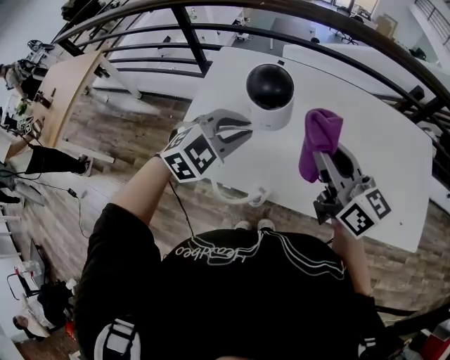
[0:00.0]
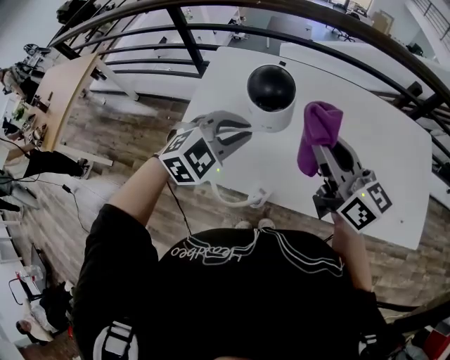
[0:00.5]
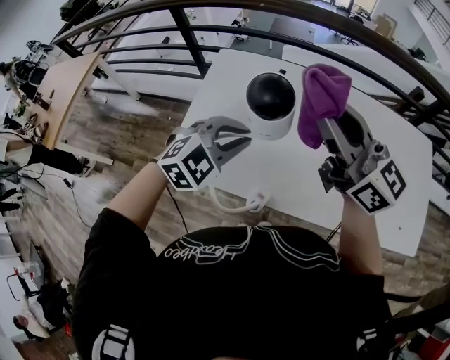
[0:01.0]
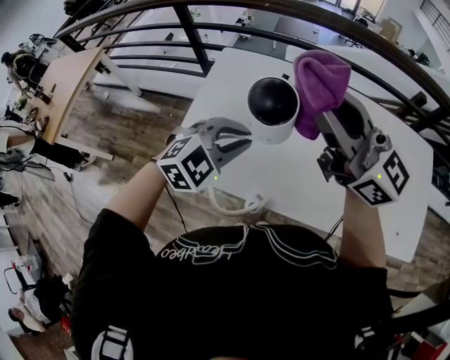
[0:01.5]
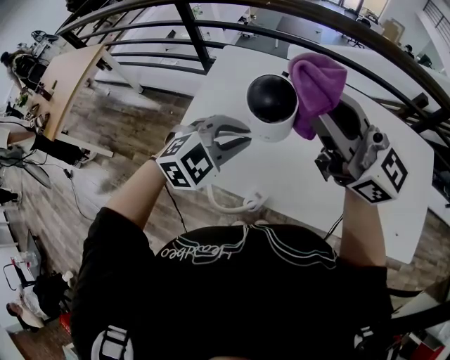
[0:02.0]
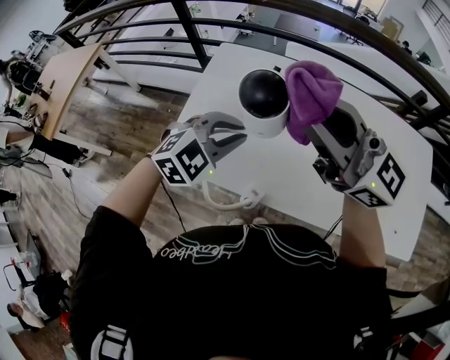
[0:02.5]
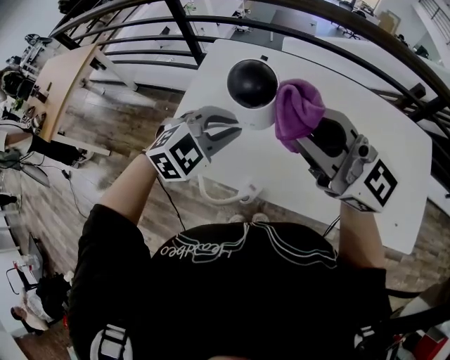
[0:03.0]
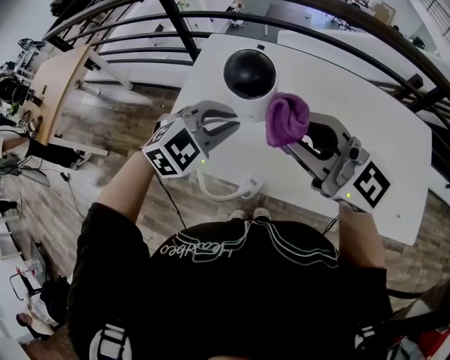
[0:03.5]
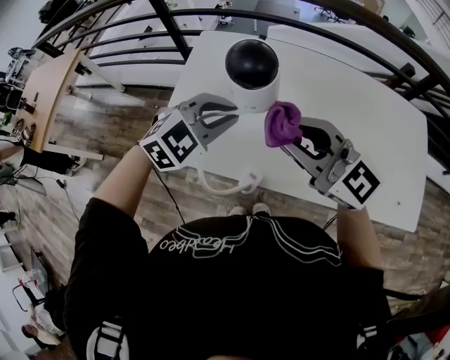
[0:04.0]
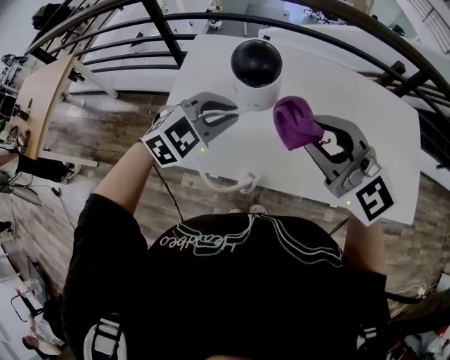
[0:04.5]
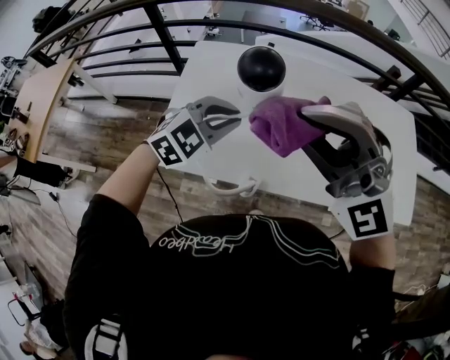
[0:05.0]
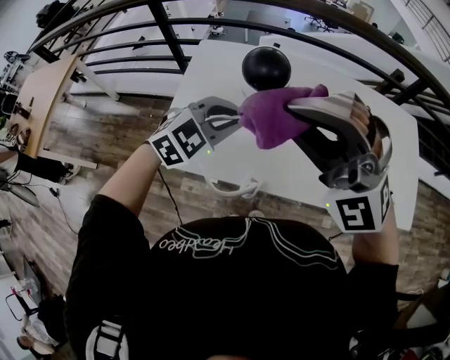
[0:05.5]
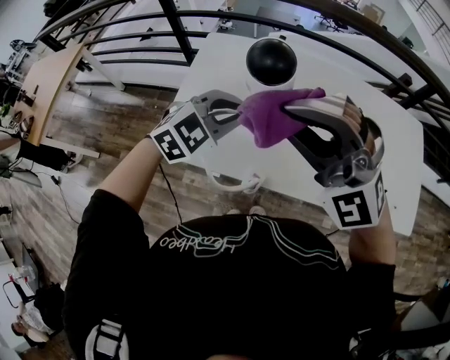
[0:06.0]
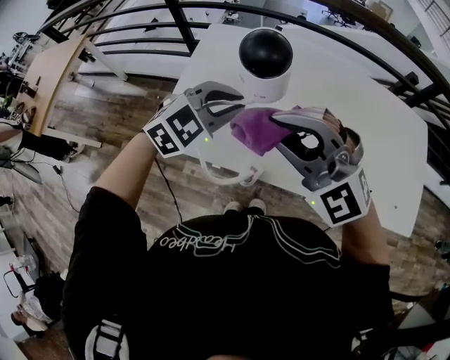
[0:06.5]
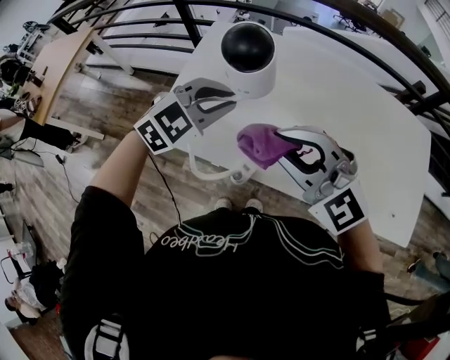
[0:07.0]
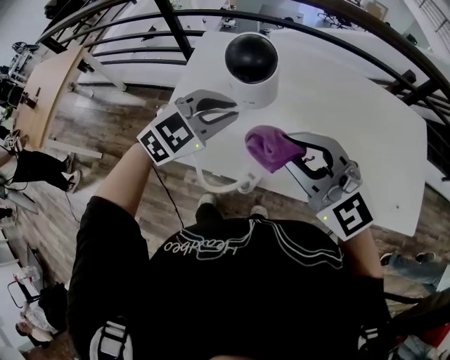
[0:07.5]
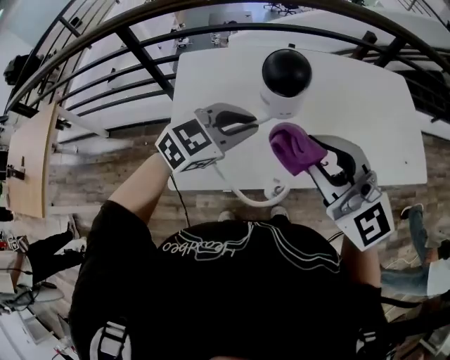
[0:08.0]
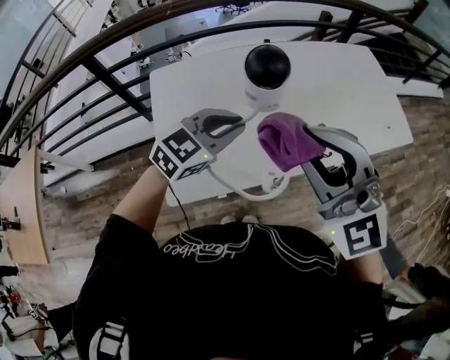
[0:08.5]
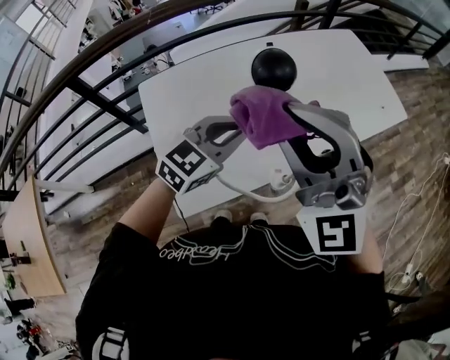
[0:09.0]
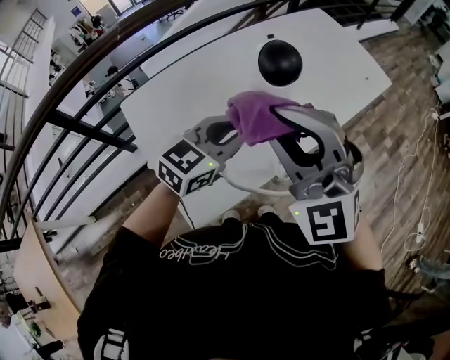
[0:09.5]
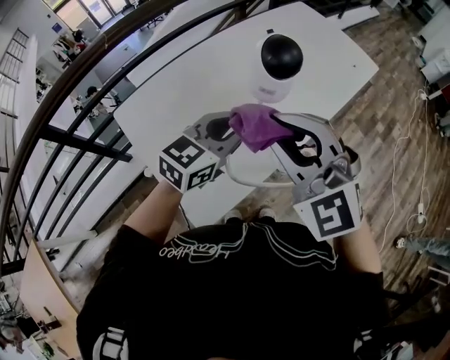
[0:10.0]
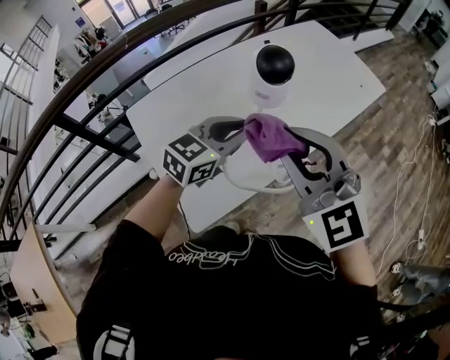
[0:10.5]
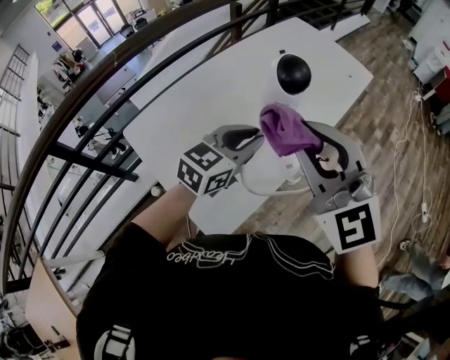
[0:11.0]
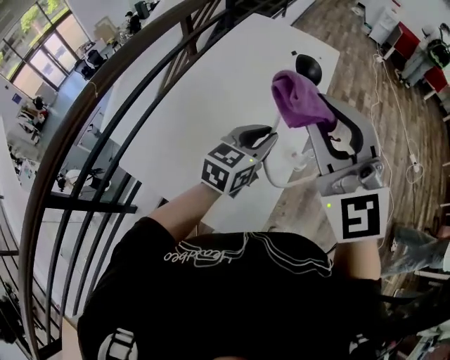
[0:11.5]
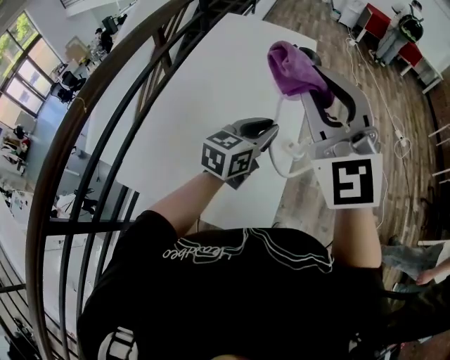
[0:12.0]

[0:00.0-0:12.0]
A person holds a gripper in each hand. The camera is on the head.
0:00.0 to 0:02.0: The right gripper moves upward, about 10 cm, and turns by some 30 degrees.
0:02.0 to 0:04.0: The right gripper shifts approximately 15 cm downward and backward, and turns by approximately 20 degrees.
0:04.0 to 0:06.0: The right gripper goes approximately 5 cm upward, and twists about 60 degrees counterclockwise, seen from behind.
0:06.0 to 0:08.0: The right gripper reaches approximately 10 cm downward, then returns, and rolls clockwise, seen from behind, by approximately 40 degrees. Meanwhile the left gripper swivels roughly 20 degrees.
0:08.0 to 0:10.0: The right gripper goes upward and returns, roughly 5 cm each way, and swivels some 50 degrees. Meanwhile the left gripper swivels roughly 30 degrees.
0:10.0 to 0:12.0: The right gripper heads upward, covering some 10 cm, and swivels some 50 degrees, while the left gripper swivels approximately 30 degrees.

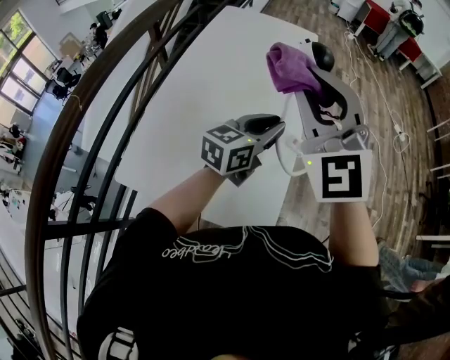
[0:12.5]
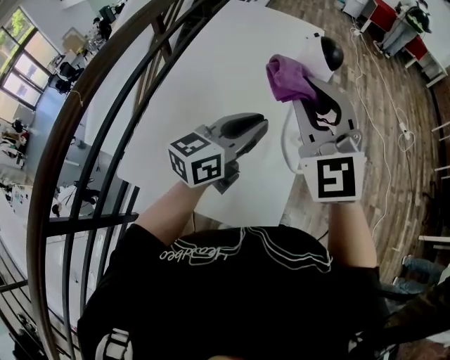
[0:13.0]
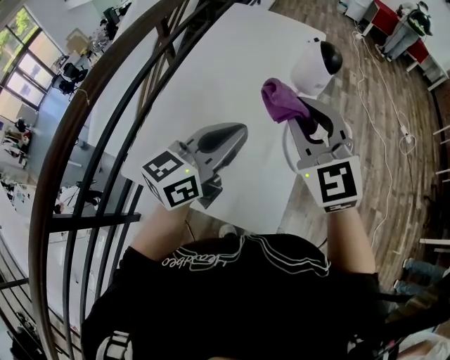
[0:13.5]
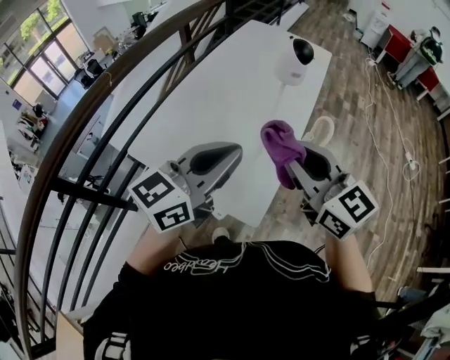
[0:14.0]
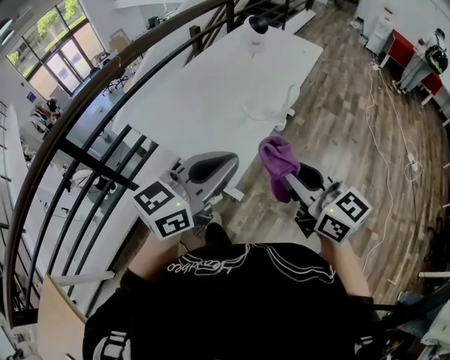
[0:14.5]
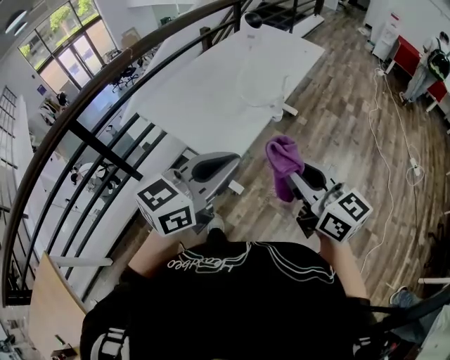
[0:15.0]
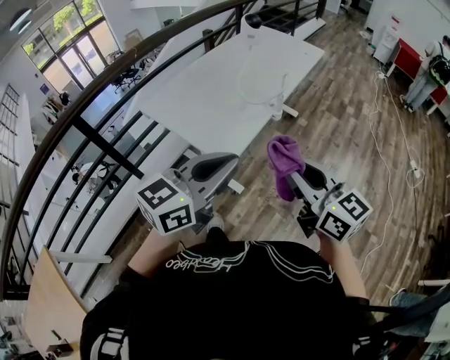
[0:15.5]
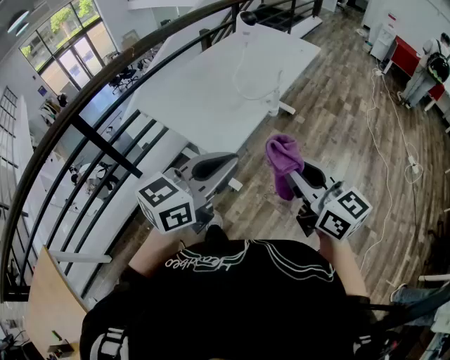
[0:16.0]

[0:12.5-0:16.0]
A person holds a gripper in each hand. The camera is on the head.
0:12.5 to 0:14.5: The left gripper changes place by some 35 cm, and changes its angle by some 20 degrees. Meanwhile the right gripper shifts by roughly 40 cm, and rolls clockwise, seen from behind, by approximately 50 degrees.
0:14.5 to 0:16.0: Both grippers move backward and to the right, about 15 cm.

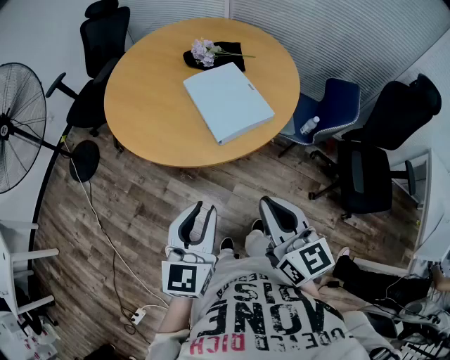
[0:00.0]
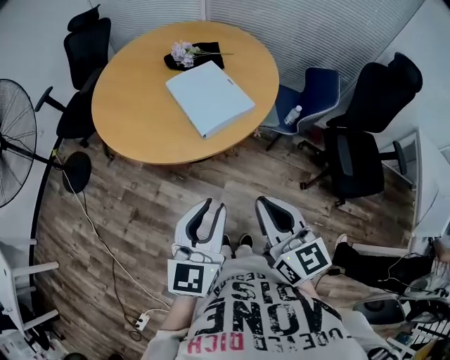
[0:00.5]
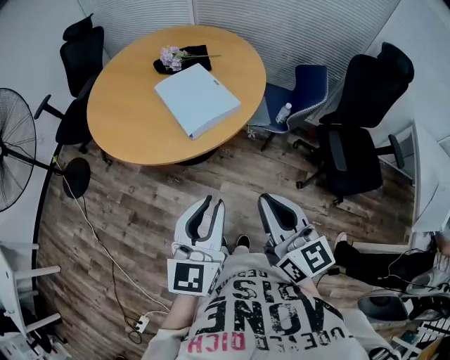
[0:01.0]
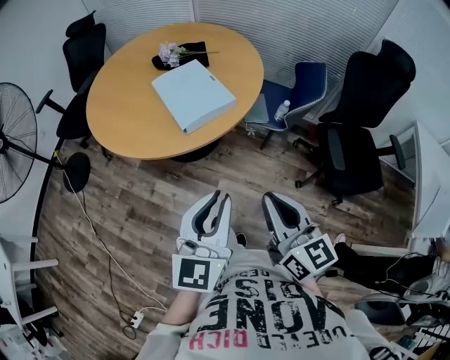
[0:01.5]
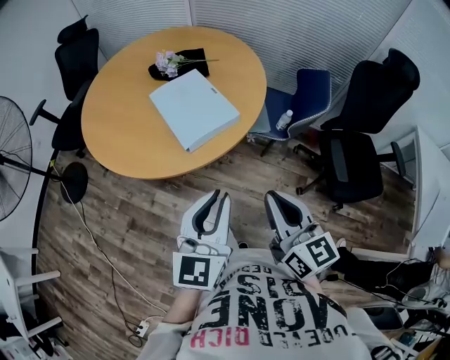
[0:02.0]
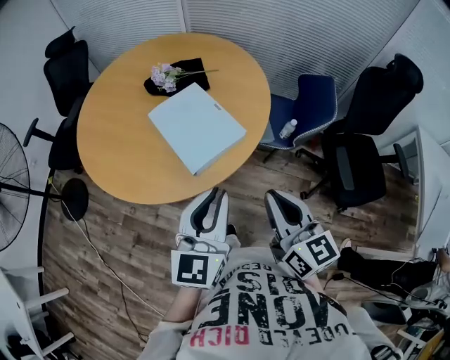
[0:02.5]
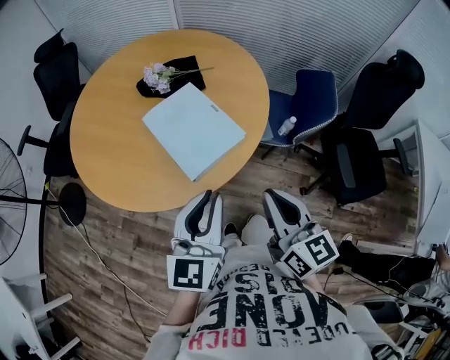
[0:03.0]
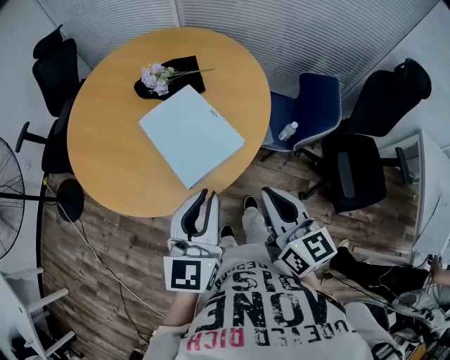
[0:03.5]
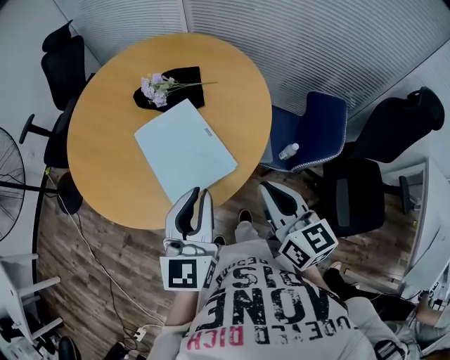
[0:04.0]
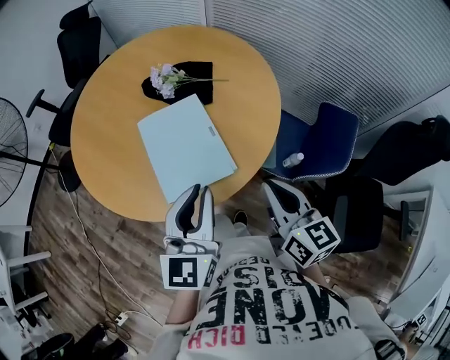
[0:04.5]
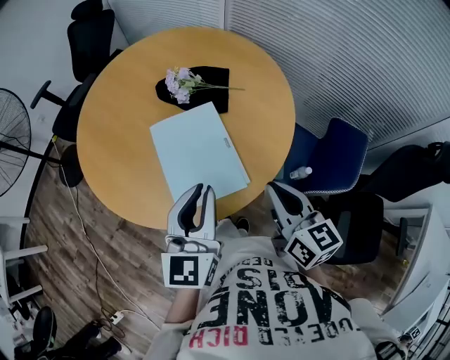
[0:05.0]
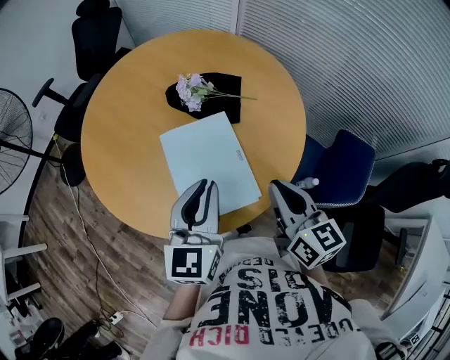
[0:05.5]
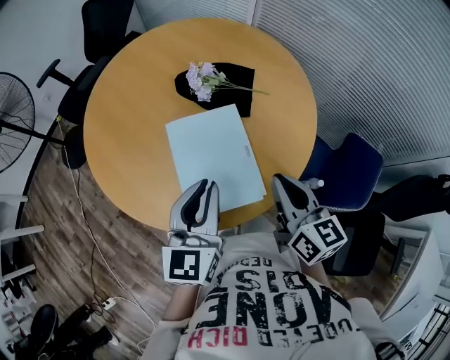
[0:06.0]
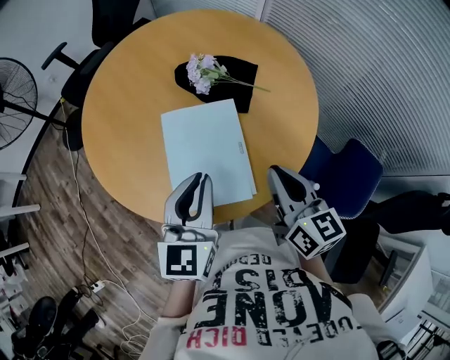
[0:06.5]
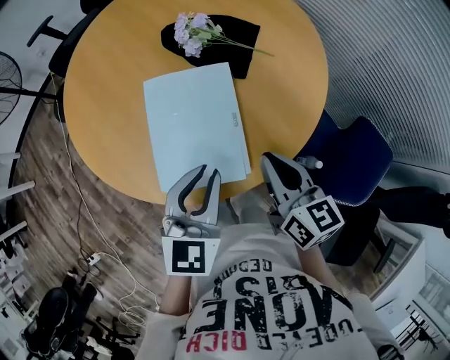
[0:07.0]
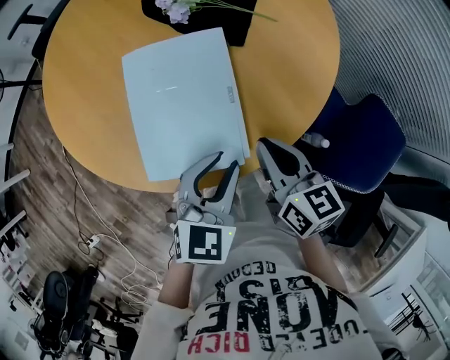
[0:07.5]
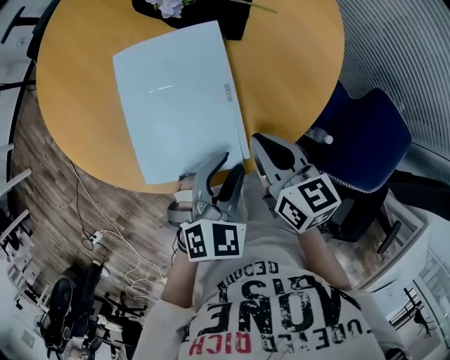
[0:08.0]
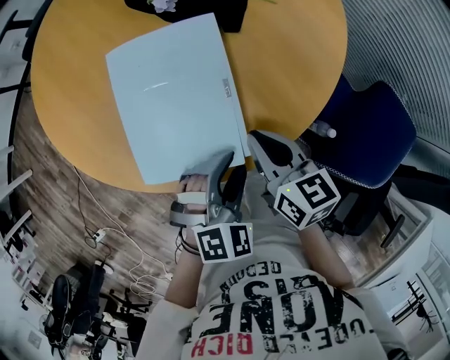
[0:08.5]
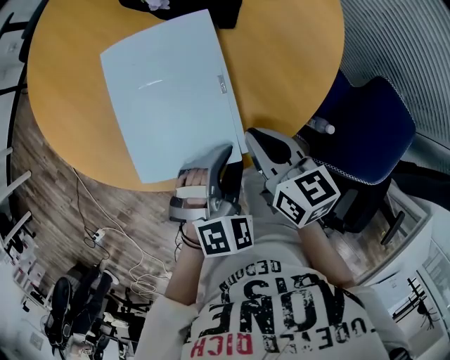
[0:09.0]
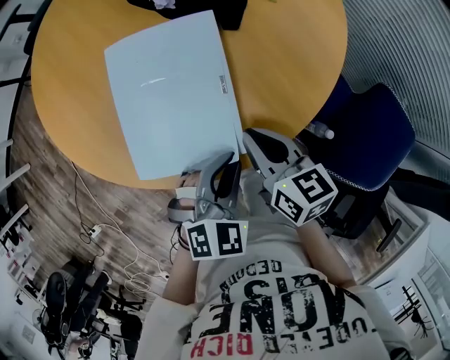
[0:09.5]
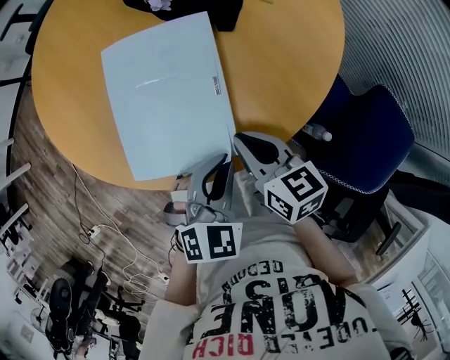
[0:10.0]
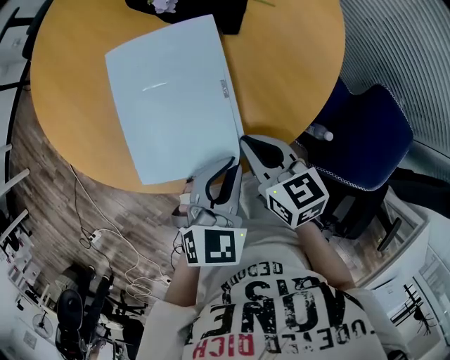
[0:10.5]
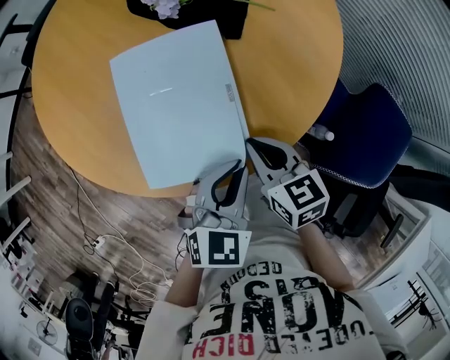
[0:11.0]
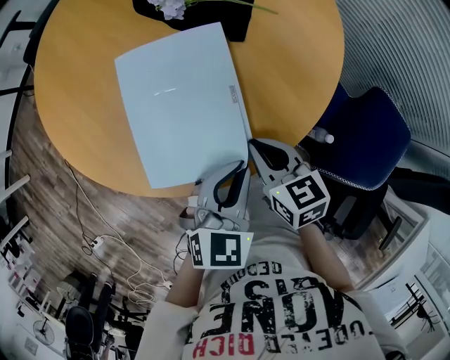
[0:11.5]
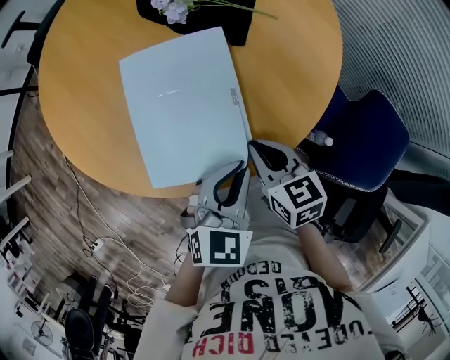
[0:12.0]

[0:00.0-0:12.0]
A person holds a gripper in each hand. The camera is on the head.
0:00.0 to 0:02.0: The two grippers go roughly 10 cm to the right.
0:02.0 to 0:04.0: The grippers both shift forward by roughly 25 cm.
0:04.0 to 0:06.0: The two grippers go about 10 cm forward.
0:06.0 to 0:08.0: The right gripper goes approximately 15 cm downward, and rotates roughly 20 degrees. The left gripper travels downward and to the right by about 25 cm, angles its fingers downward, by approximately 40 degrees, and opens up.
0:08.0 to 0:10.0: The left gripper closes its fingers.
0:10.0 to 0:12.0: The grippers move only a little.
